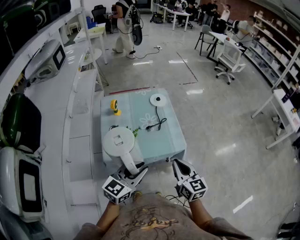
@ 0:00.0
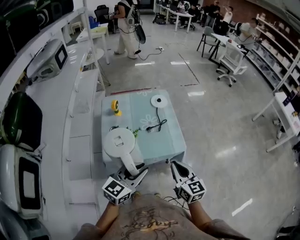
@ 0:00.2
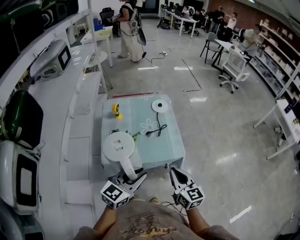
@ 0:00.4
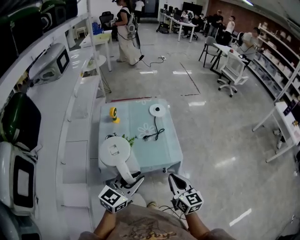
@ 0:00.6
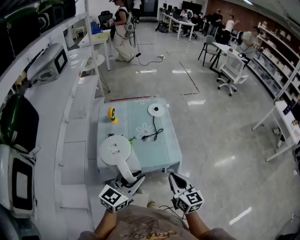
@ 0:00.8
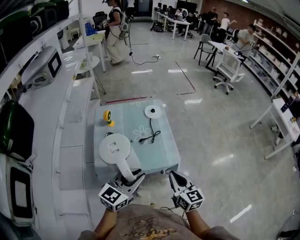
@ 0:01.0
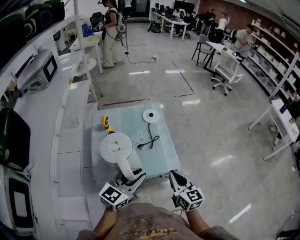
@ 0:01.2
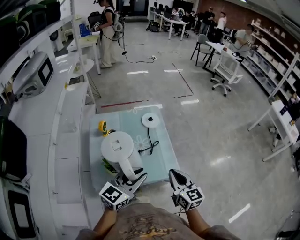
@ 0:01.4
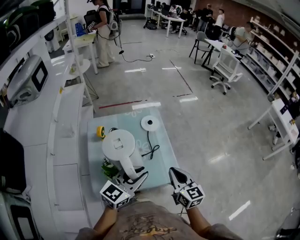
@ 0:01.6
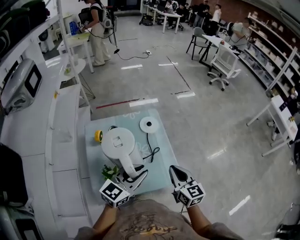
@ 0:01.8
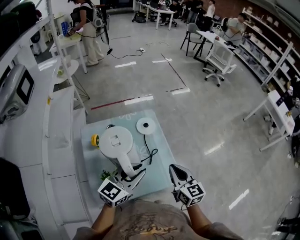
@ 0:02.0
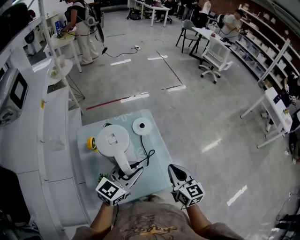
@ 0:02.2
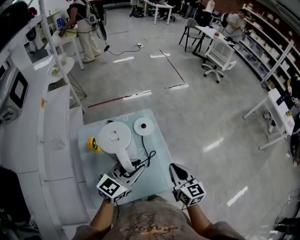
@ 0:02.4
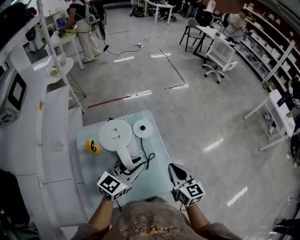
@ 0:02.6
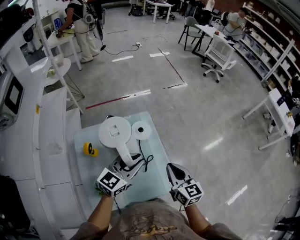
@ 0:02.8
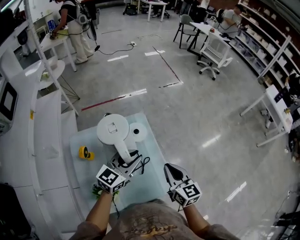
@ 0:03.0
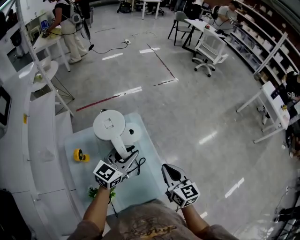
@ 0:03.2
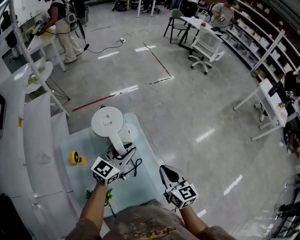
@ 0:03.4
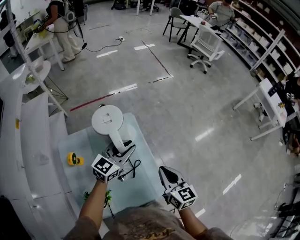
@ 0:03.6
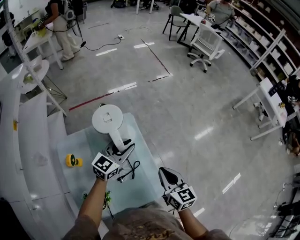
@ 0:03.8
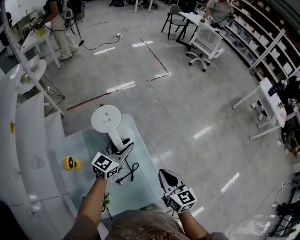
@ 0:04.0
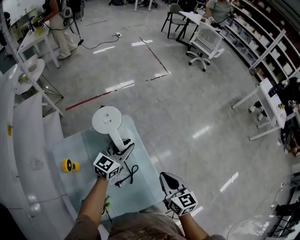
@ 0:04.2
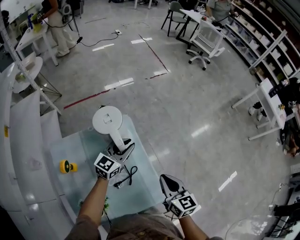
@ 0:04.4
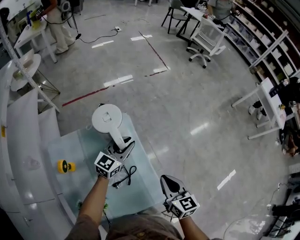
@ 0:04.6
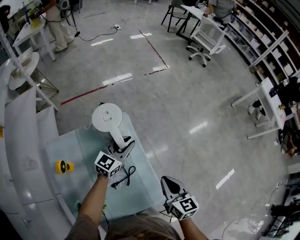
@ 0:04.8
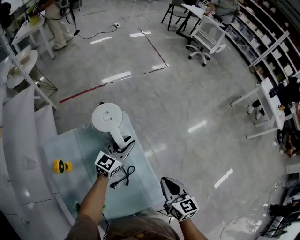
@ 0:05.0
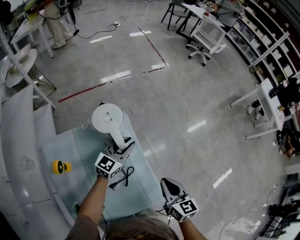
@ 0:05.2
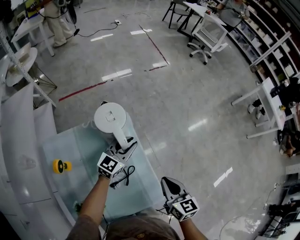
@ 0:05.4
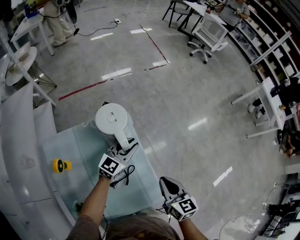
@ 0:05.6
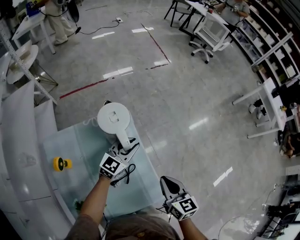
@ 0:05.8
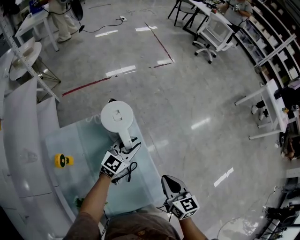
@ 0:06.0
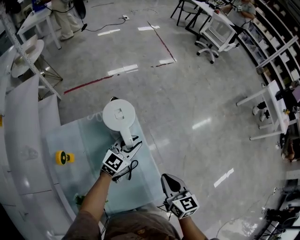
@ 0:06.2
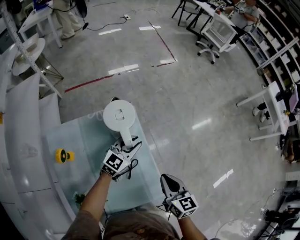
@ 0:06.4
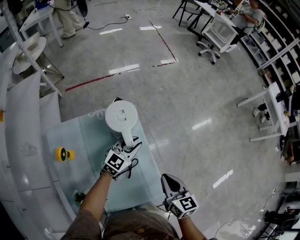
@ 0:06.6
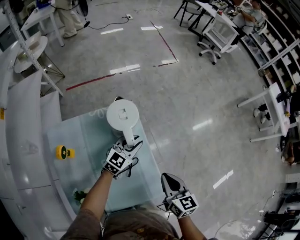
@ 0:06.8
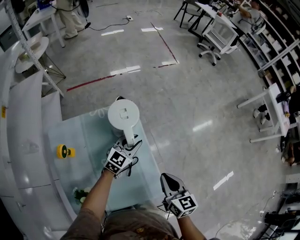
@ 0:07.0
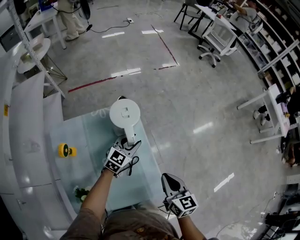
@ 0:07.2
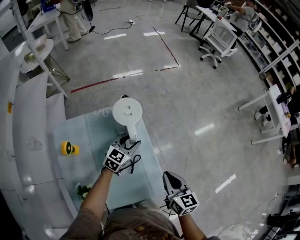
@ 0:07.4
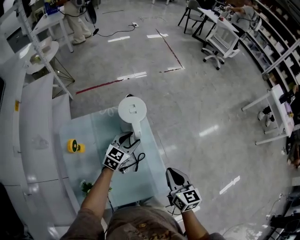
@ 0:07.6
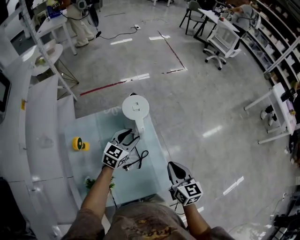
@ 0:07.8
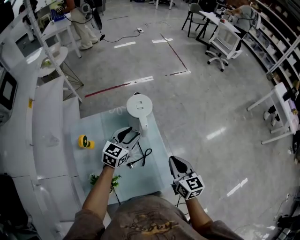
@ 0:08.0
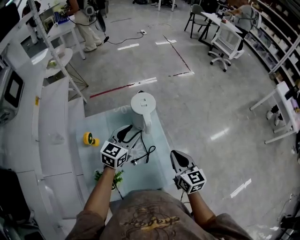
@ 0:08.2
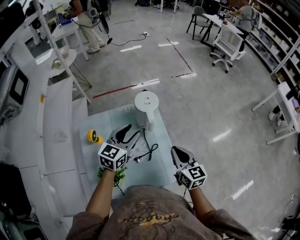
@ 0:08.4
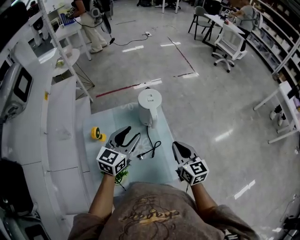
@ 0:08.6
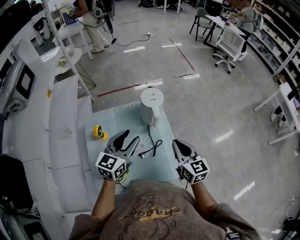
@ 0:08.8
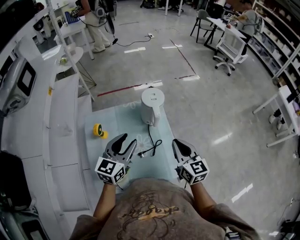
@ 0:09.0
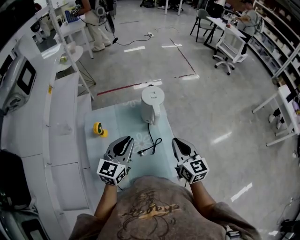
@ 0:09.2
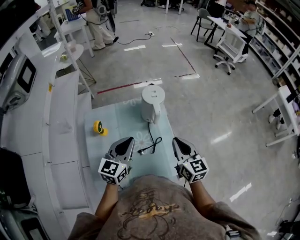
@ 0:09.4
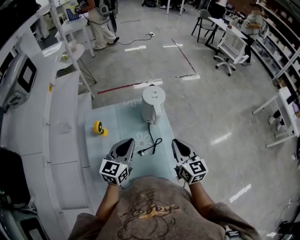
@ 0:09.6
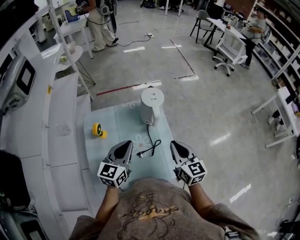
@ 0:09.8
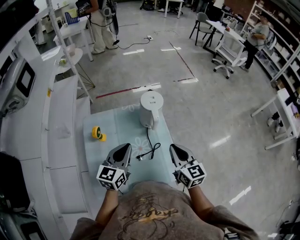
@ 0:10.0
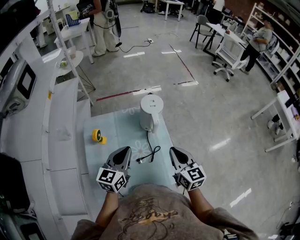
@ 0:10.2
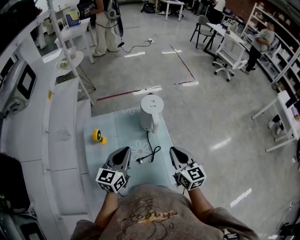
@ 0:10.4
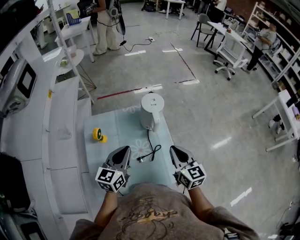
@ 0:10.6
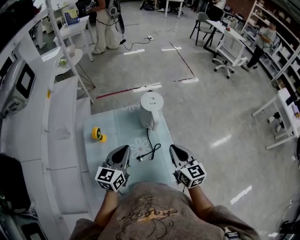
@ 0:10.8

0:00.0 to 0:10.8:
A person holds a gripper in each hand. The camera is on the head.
0:00.0 to 0:01.6: Both grippers move forward, approximately 20 cm.
0:01.6 to 0:03.0: The two grippers go approximately 25 cm forward.
0:03.0 to 0:04.6: The right gripper heads downward and forward, covering approximately 10 cm, while the left gripper heads forward and downward, covering some 25 cm.
0:04.6 to 0:06.2: The left gripper ends up some 5 cm from where it was.
0:06.2 to 0:07.8: The left gripper travels to the left and backward by some 10 cm, and opens. The right gripper shifts by roughly 5 cm.
0:07.8 to 0:09.2: The right gripper is displaced upward and to the left by approximately 10 cm, while the left gripper is displaced backward, upward and to the left by approximately 25 cm, changes its angle by about 20 degrees, and closes its fingers.
0:09.2 to 0:10.8: The grippers move only a little.

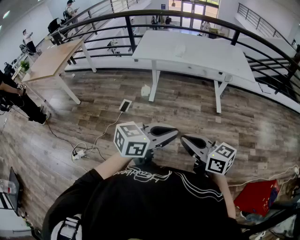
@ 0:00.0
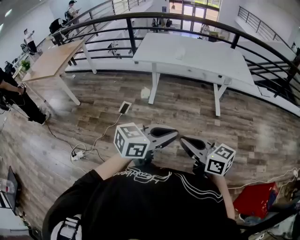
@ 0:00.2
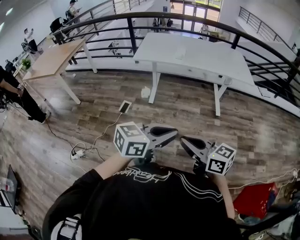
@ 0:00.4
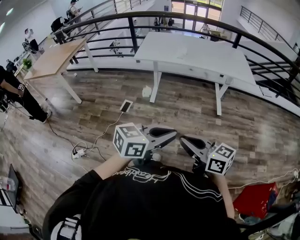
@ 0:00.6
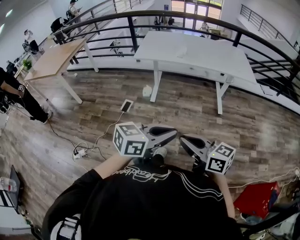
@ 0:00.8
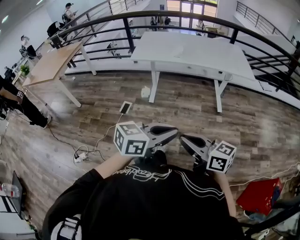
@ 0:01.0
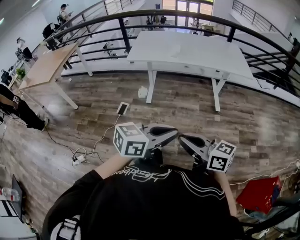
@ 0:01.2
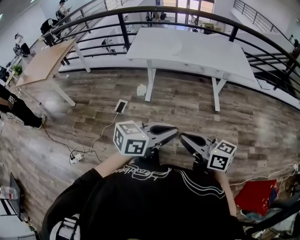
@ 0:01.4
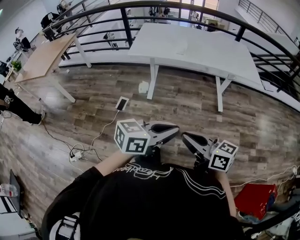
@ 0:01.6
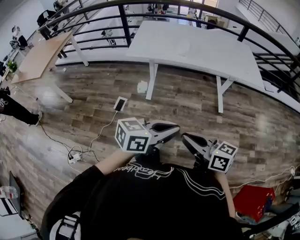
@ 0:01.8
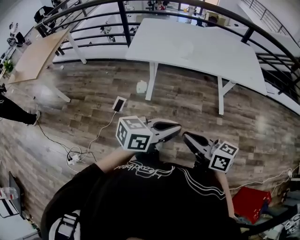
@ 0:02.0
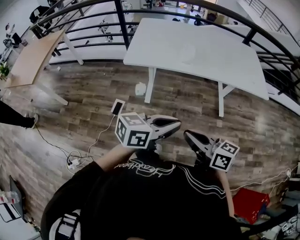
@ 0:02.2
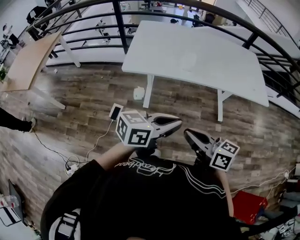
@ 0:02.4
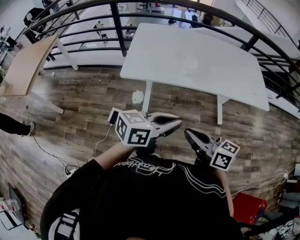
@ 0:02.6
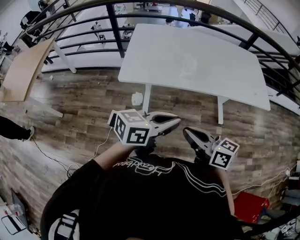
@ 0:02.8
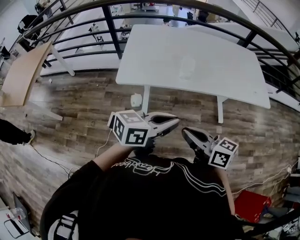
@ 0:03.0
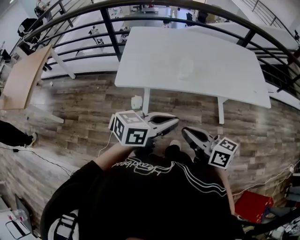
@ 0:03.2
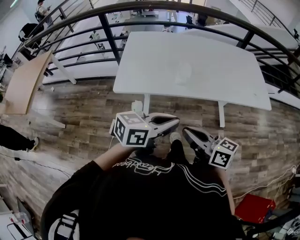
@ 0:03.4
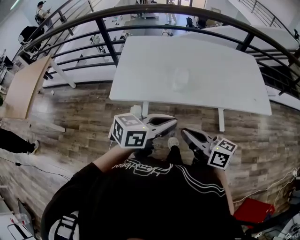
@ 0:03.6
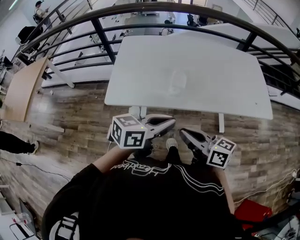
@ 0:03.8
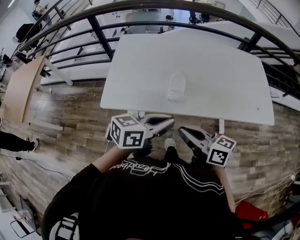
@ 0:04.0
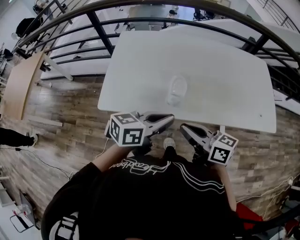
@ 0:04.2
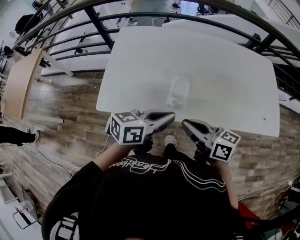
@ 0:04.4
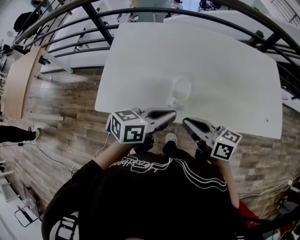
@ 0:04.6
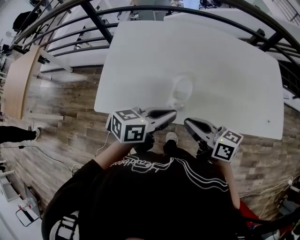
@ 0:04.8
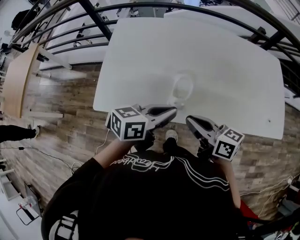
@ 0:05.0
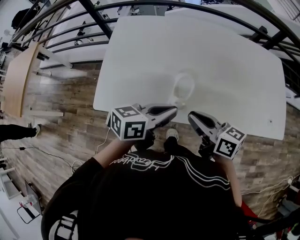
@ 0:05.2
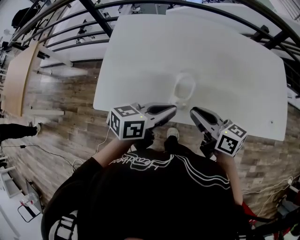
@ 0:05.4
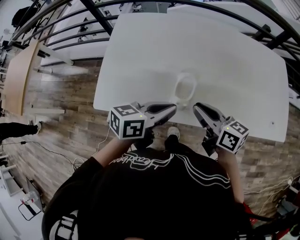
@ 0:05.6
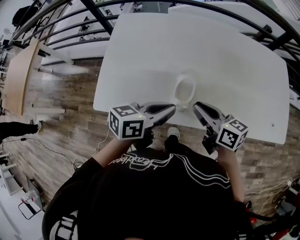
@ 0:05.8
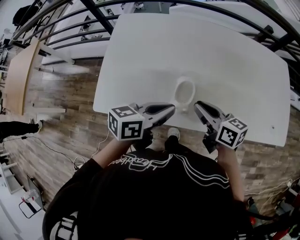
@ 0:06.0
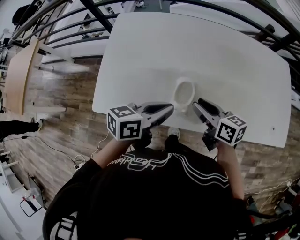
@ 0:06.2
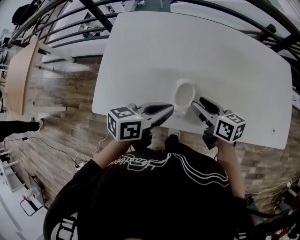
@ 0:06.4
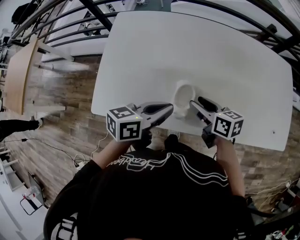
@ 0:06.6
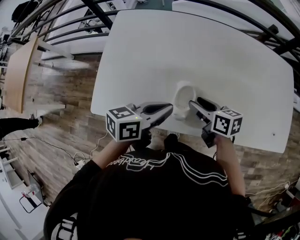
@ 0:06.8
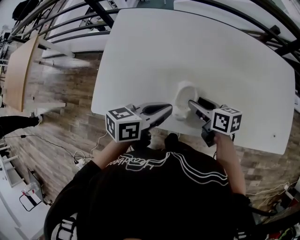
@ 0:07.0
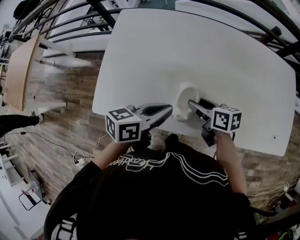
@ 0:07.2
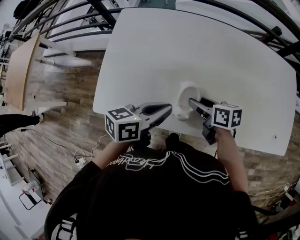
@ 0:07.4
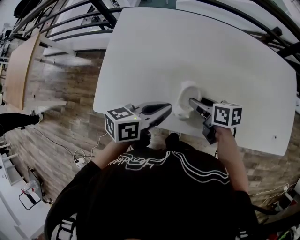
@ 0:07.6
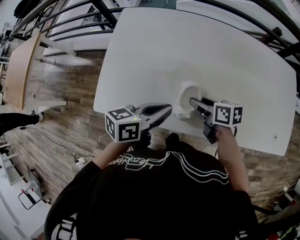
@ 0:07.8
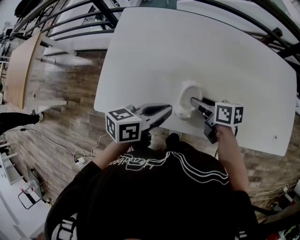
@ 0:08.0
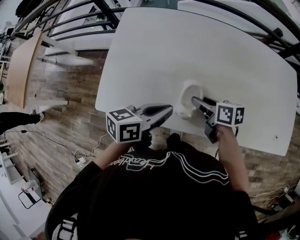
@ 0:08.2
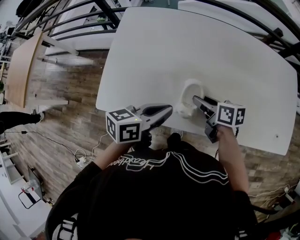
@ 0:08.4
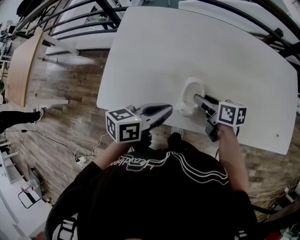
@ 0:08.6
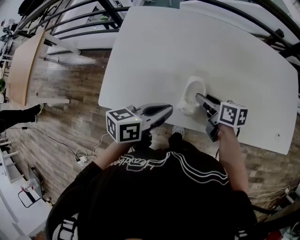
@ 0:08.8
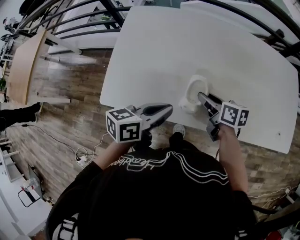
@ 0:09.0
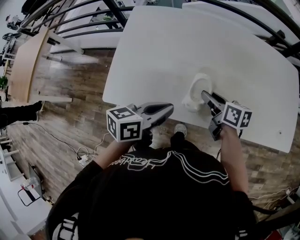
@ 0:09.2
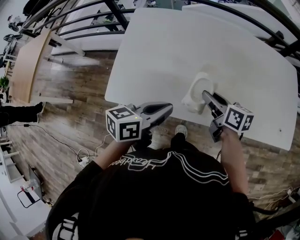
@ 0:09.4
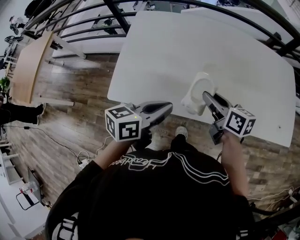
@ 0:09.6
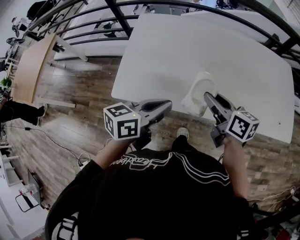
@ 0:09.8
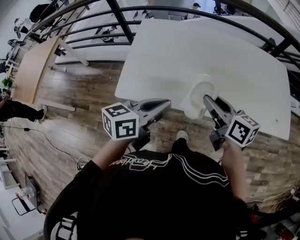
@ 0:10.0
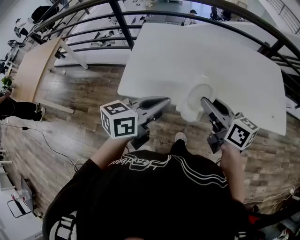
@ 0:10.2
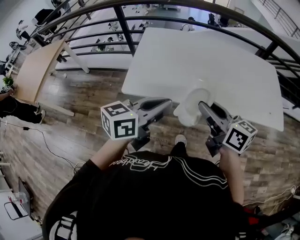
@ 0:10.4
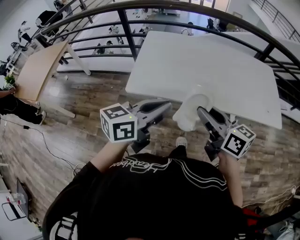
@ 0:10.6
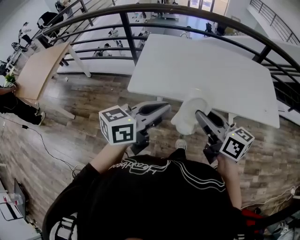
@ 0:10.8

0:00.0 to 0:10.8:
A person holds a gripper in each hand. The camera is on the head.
0:00.0 to 0:01.6: The grippers both shift forward by roughly 10 cm.
0:01.6 to 0:03.0: The two grippers travel together, forward, some 40 cm.
0:03.0 to 0:04.6: The grippers both shift forward by roughly 30 cm.
0:04.6 to 0:06.2: The right gripper shifts roughly 15 cm forward and downward, while the left gripper is displaced forward by some 5 cm.
0:06.2 to 0:07.8: The right gripper goes some 5 cm downward.
0:07.8 to 0:09.2: The left gripper moves some 5 cm.
0:09.2 to 0:10.8: The grippers both shift backward and upward by about 40 cm. The left gripper turns by about 20 degrees. Meanwhile the right gripper turns by some 30 degrees.

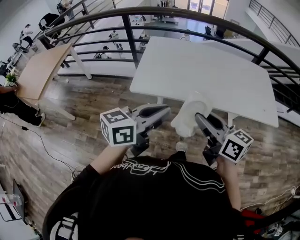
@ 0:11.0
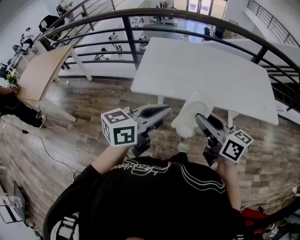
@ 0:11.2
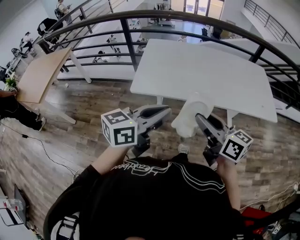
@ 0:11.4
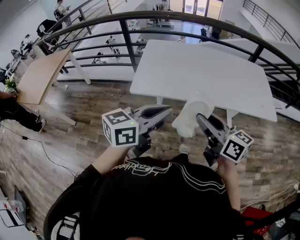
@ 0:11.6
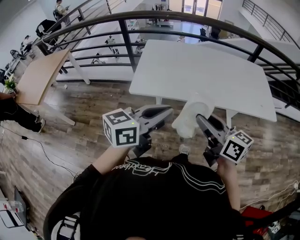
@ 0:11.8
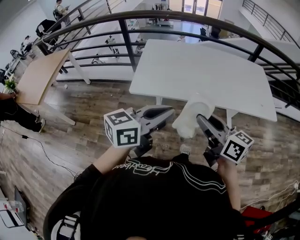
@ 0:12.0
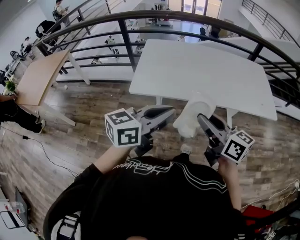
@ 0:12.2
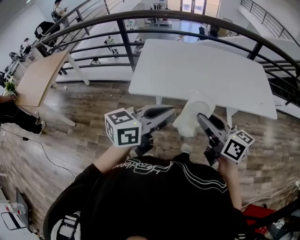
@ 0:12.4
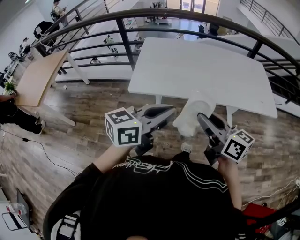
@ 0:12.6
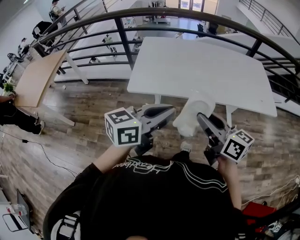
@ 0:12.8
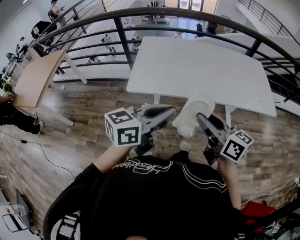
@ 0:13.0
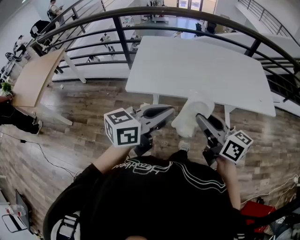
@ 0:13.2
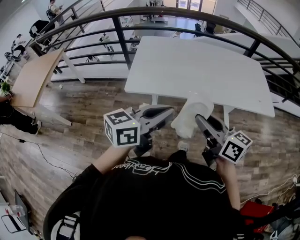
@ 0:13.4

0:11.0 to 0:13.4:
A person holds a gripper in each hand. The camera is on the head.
0:11.0 to 0:12.2: There are only small adjustments of the grippers.
0:12.2 to 0:13.4: Both grippers stay put.
